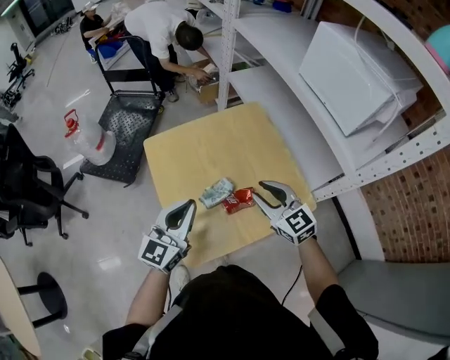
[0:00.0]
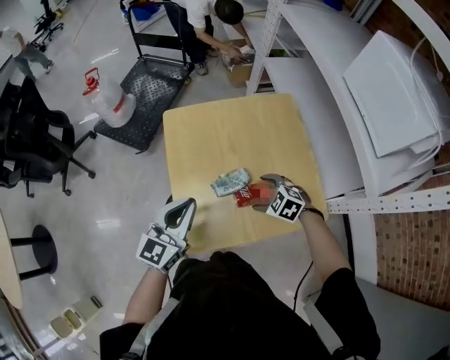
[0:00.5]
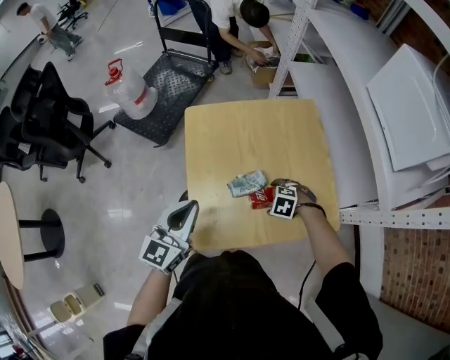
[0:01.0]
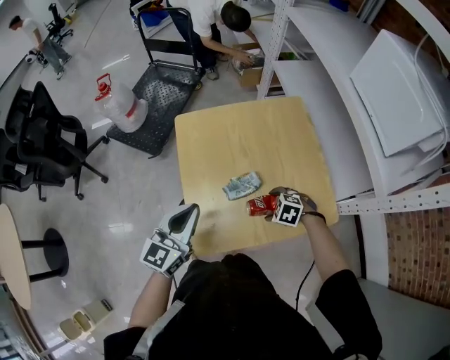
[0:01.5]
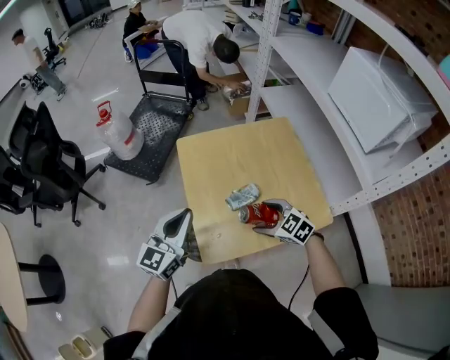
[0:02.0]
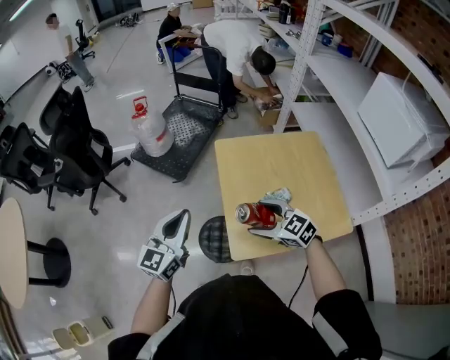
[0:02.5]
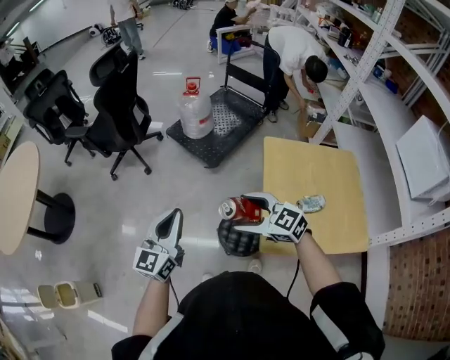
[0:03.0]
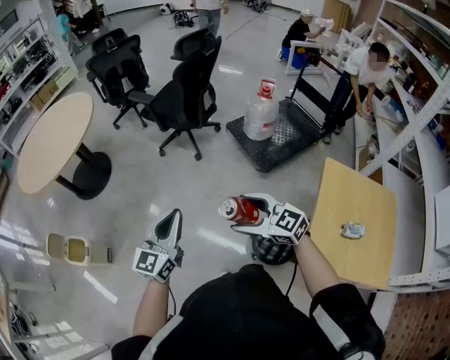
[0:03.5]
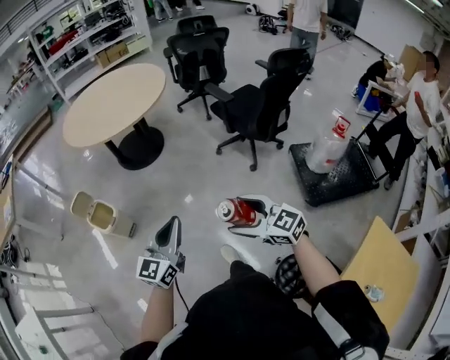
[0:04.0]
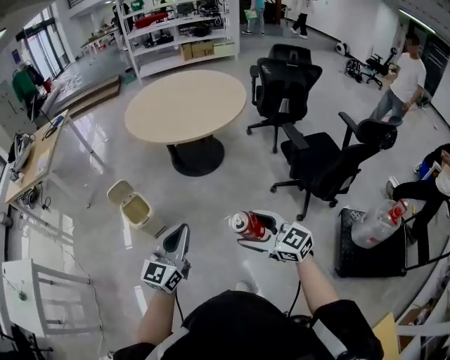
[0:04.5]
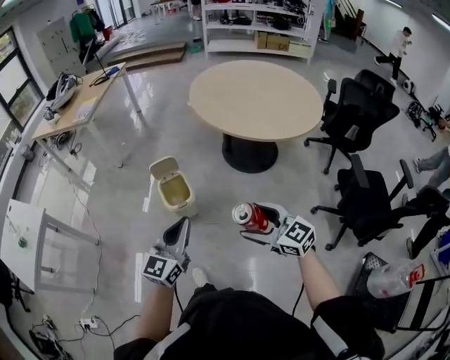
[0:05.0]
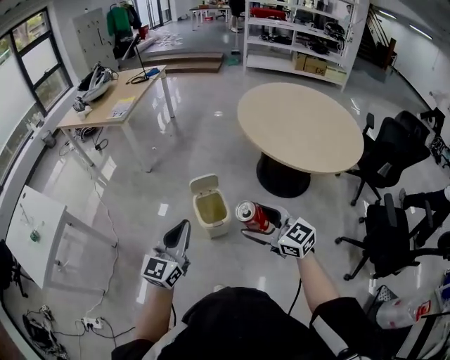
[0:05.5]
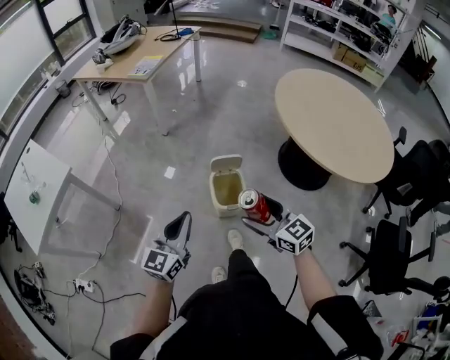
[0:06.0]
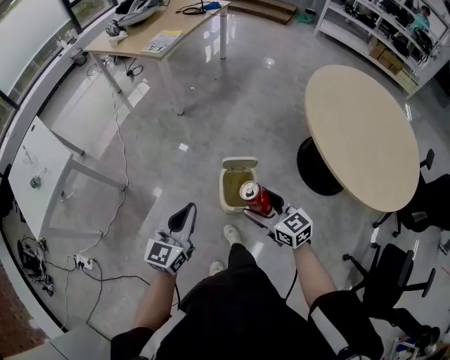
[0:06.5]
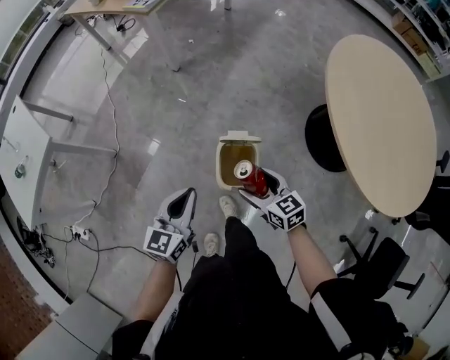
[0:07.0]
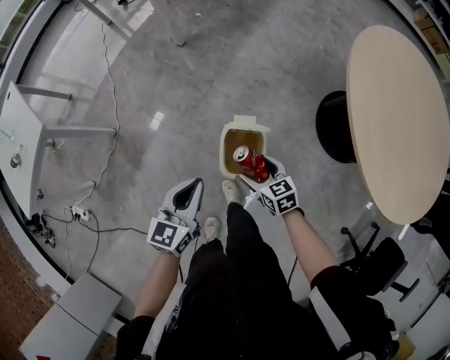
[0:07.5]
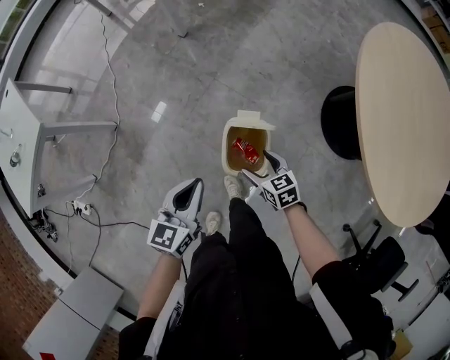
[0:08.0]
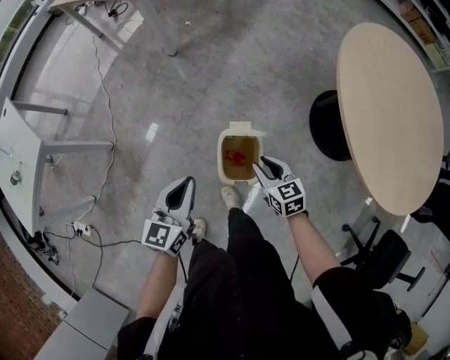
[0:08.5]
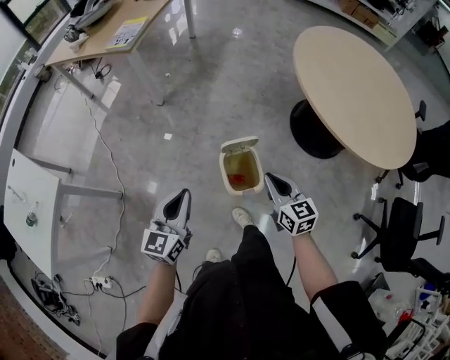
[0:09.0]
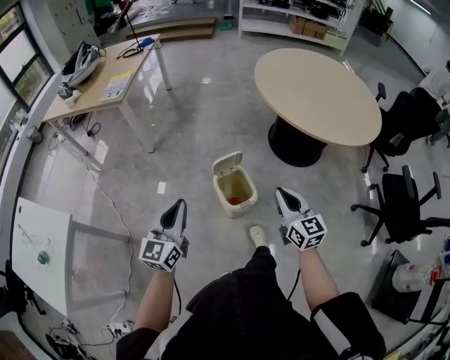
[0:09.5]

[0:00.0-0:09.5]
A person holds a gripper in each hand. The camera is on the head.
0:00.0 to 0:02.0: The left gripper shifts by some 10 cm. Meanwhile the right gripper travels downward by roughly 10 cm, swivels roughly 30 degrees, and opens.
0:02.0 to 0:04.0: The two grippers travel together, roughly 70 cm. The left gripper rotates about 70 degrees. The right gripper changes its angle by some 70 degrees.
0:04.0 to 0:05.5: The pair of grippers is taken some 50 cm. The left gripper changes its angle by approximately 50 degrees; the right gripper rotates roughly 40 degrees.
0:05.5 to 0:07.5: The right gripper shifts about 40 cm downward and forward, and points its fingers roughly 30 degrees further downward. Meanwhile the left gripper shifts roughly 30 cm forward and downward, and rotates roughly 40 degrees.
0:07.5 to 0:09.5: The left gripper travels upward by some 15 cm, and turns by some 30 degrees. The right gripper travels upward by some 25 cm, tips its fingers upward by about 30 degrees, and closes its fingers.

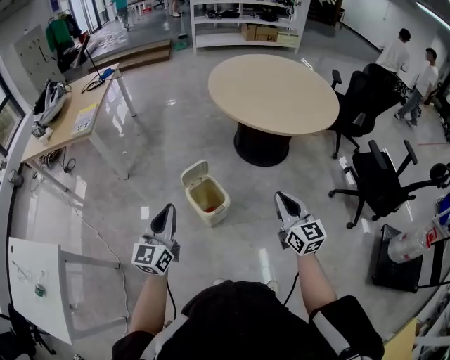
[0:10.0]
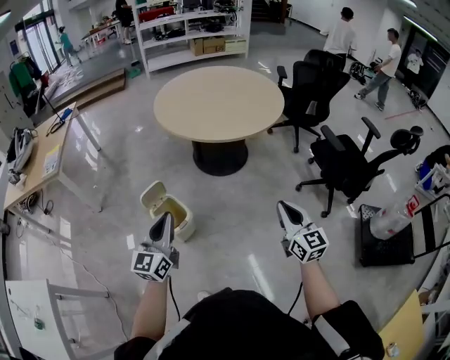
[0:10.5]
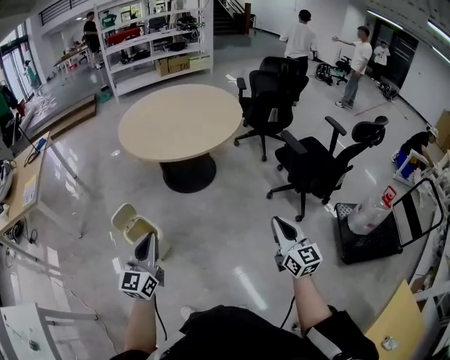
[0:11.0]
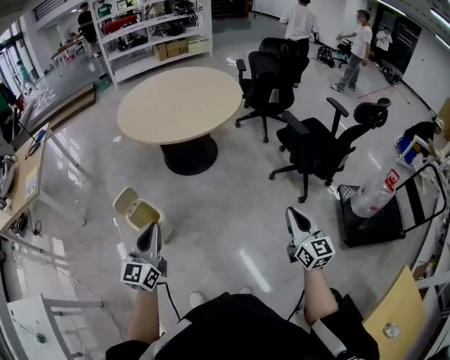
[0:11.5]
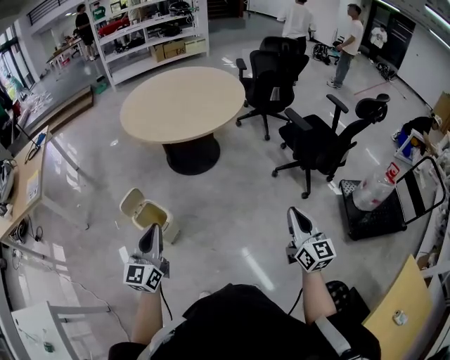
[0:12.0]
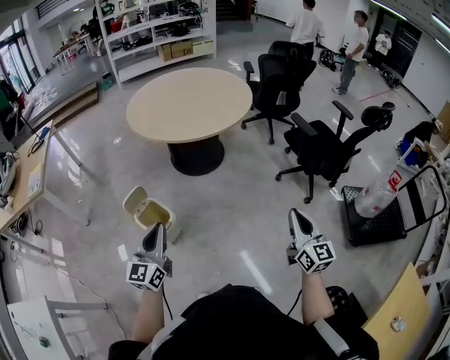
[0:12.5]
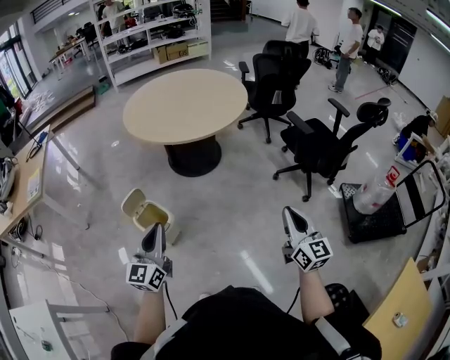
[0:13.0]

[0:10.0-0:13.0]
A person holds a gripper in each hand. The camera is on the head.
0:10.0 to 0:11.5: Both grippers travel together to the right, approximately 35 cm. The right gripper changes its angle by approximately 30 degrees.
0:11.5 to 0:13.0: Both grippers move to the left, roughly 5 cm.

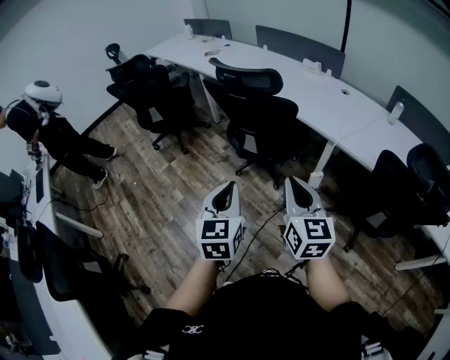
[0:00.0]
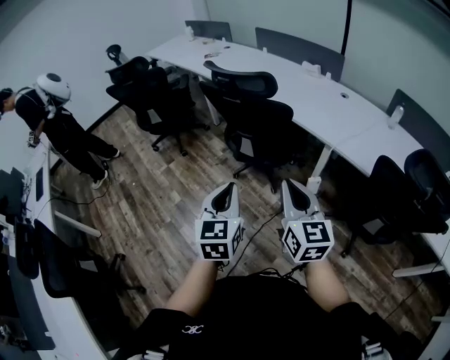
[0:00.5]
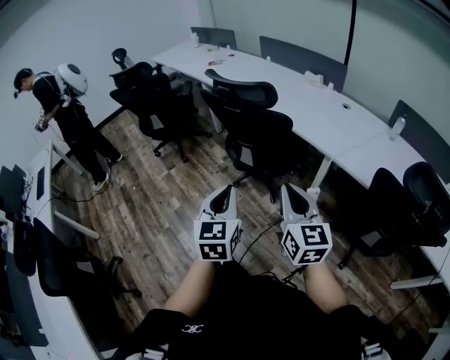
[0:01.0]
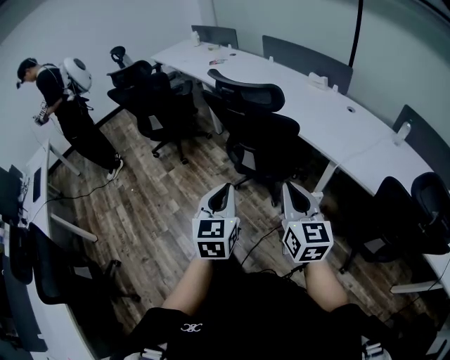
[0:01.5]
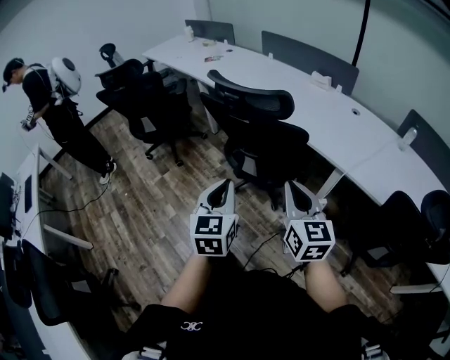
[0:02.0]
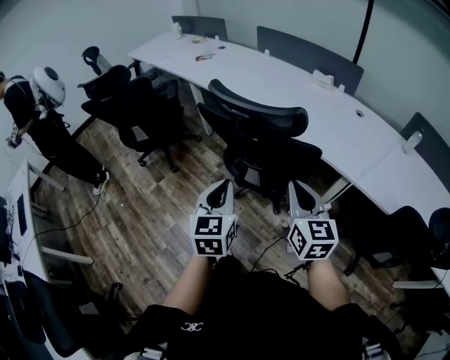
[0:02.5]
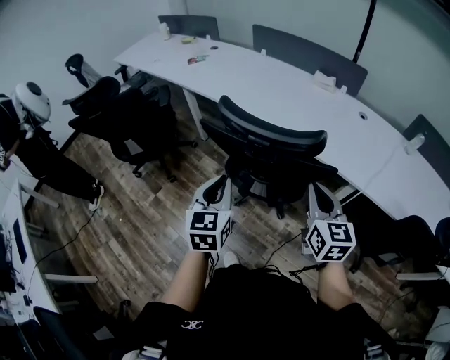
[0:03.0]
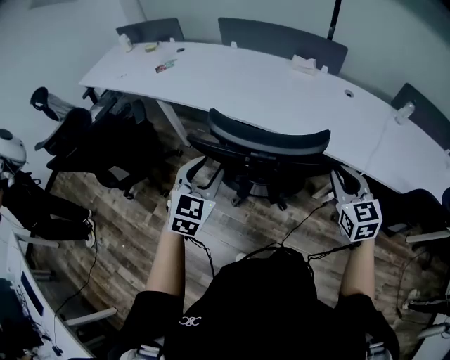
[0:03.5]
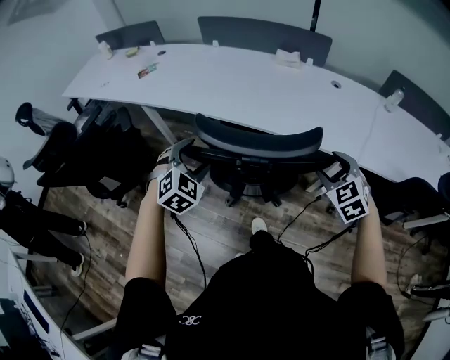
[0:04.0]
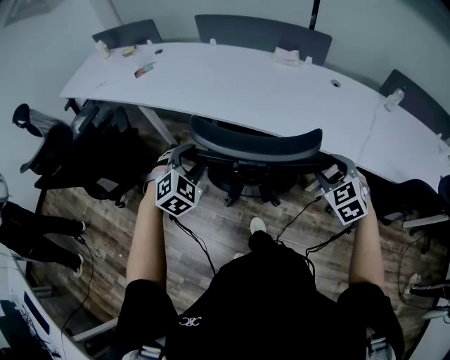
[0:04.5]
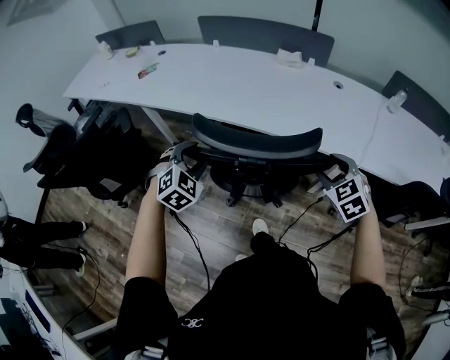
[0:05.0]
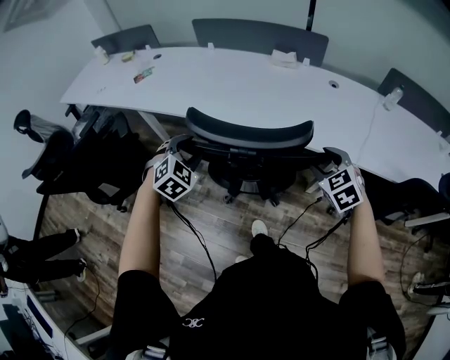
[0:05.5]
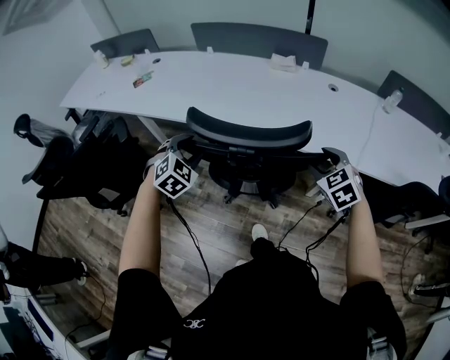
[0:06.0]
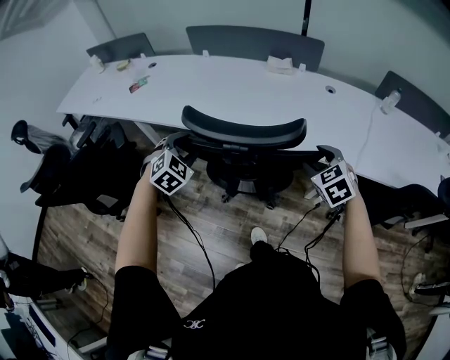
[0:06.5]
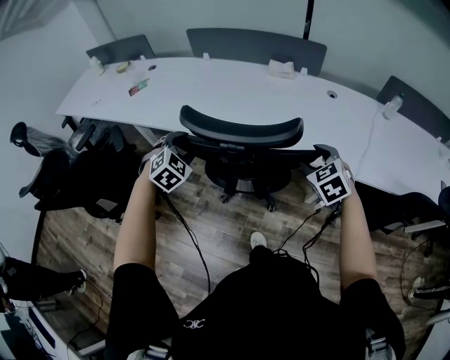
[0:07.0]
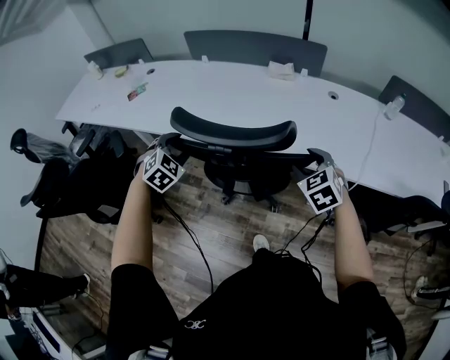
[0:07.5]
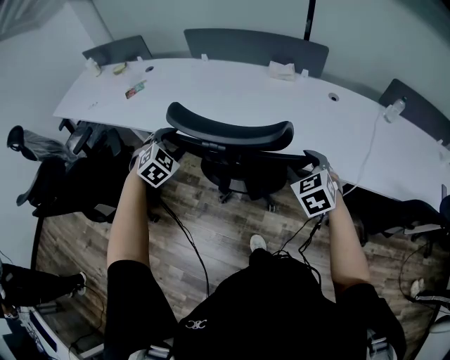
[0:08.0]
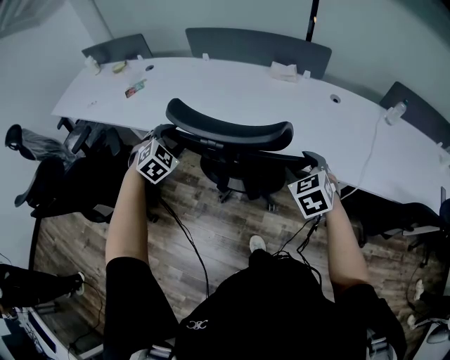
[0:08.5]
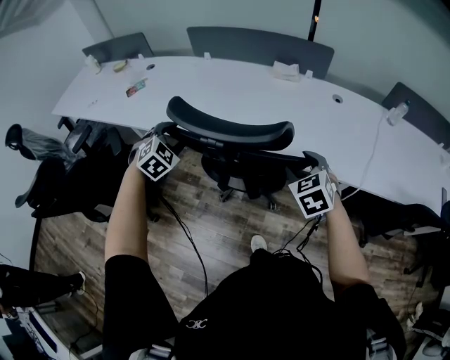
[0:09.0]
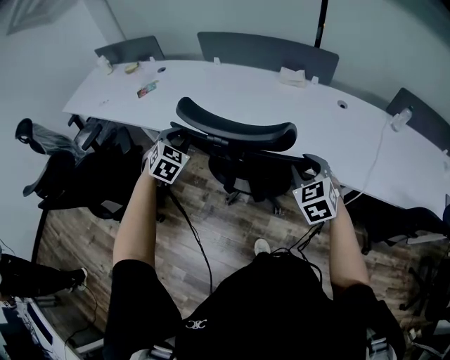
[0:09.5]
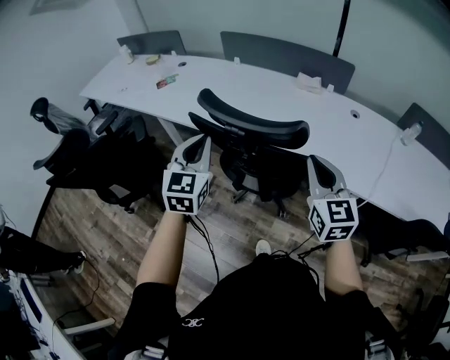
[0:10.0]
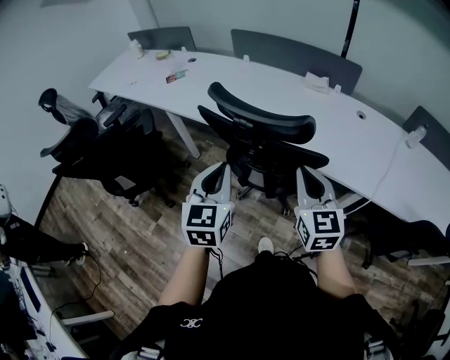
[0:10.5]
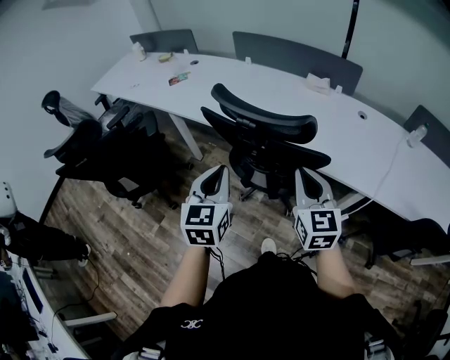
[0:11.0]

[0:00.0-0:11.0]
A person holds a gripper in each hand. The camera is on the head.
0:00.0 to 0:02.0: Both grippers travel together forward, approximately 20 cm.
0:02.0 to 0:03.5: The left gripper shifts approximately 40 cm forward and to the left, swivels roughly 40 degrees, and opens, while the right gripper is displaced forward by about 25 cm, and turns by about 30 degrees.
0:03.5 to 0:05.5: Both grippers travel together forward and downward, approximately 10 cm. The left gripper turns by about 30 degrees. Meanwhile the right gripper turns by approximately 30 degrees, and opens up.
0:05.5 to 0:07.5: Both grippers move forward, some 10 cm.
0:07.5 to 0:09.0: The left gripper shifts by roughly 5 cm.
0:09.0 to 0:11.0: The left gripper travels backward by some 25 cm, twists some 50 degrees counterclockwise, seen from behind, and closes up. The right gripper heads backward, upward and to the left, covering some 15 cm, points its fingers approximately 30 degrees further upward, and closes its fingers.

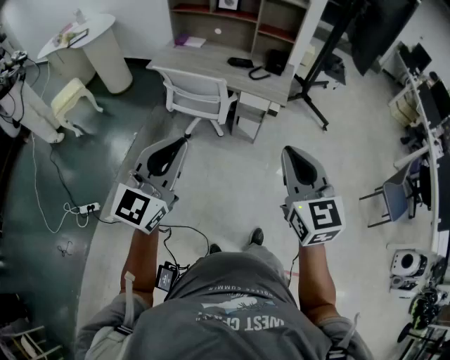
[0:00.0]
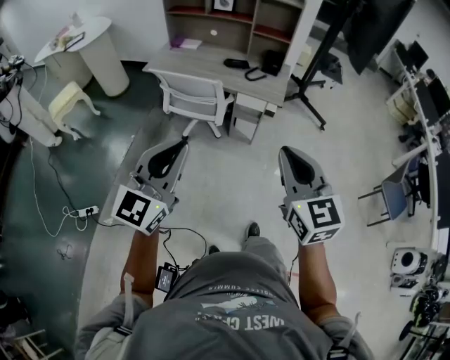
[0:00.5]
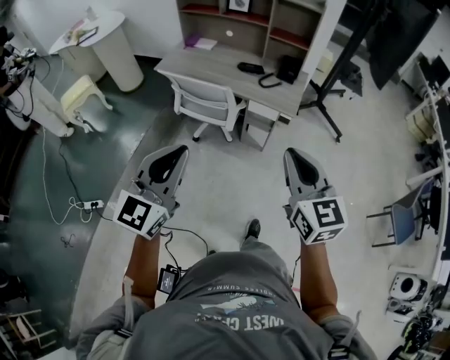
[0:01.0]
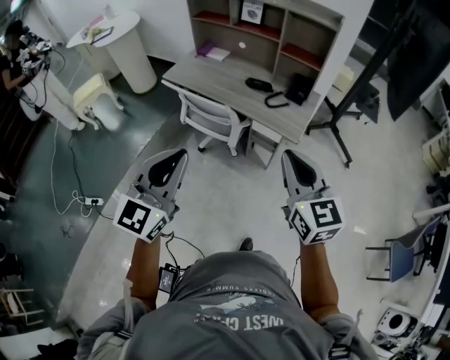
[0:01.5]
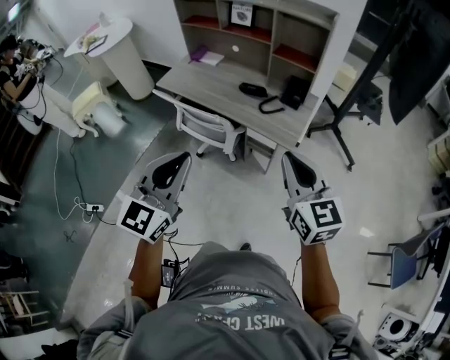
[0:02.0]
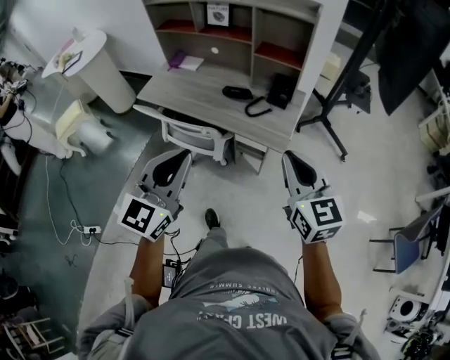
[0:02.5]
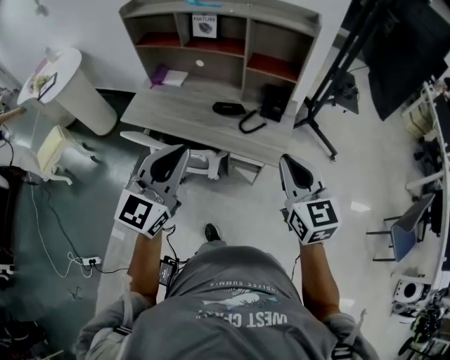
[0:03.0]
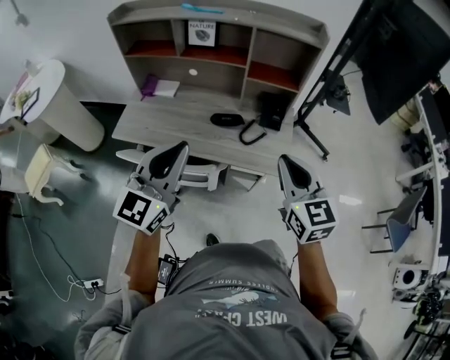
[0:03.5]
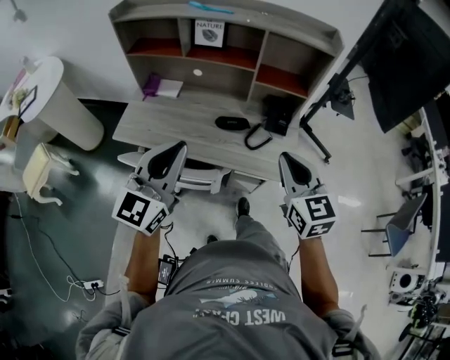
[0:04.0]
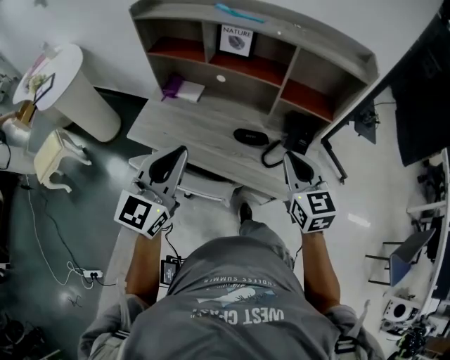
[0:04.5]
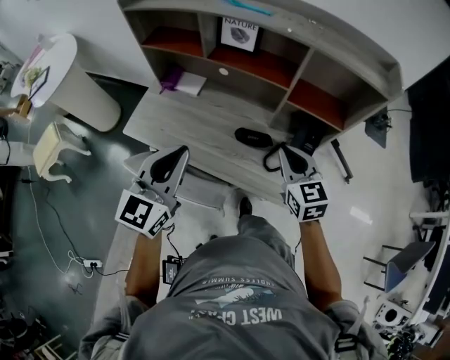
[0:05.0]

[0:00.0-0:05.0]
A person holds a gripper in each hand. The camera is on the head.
0:00.0 to 0:02.5: Both grippers move forward and to the right, some 35 cm.
0:02.5 to 0:05.0: Both grippers are carried forward and to the left, some 40 cm.
